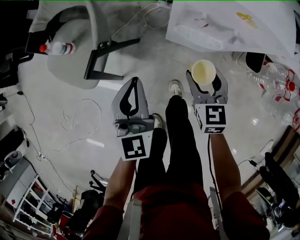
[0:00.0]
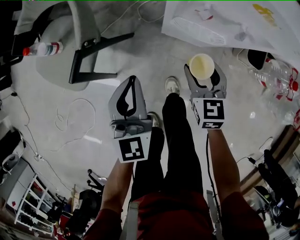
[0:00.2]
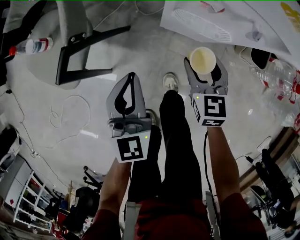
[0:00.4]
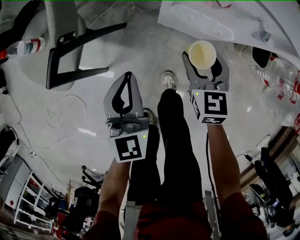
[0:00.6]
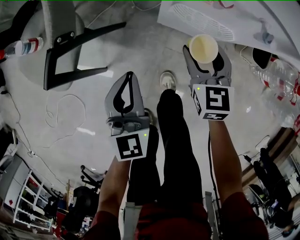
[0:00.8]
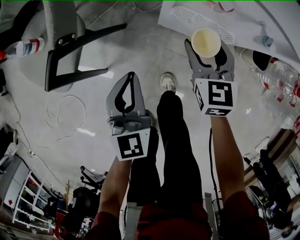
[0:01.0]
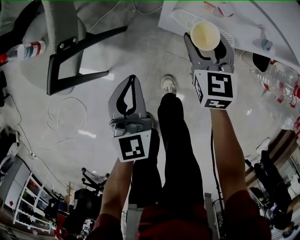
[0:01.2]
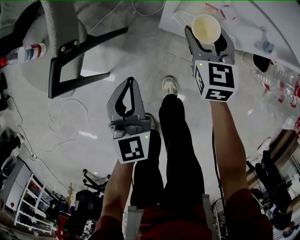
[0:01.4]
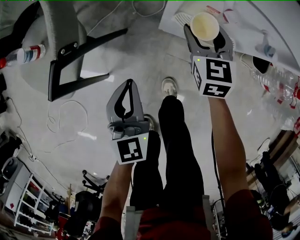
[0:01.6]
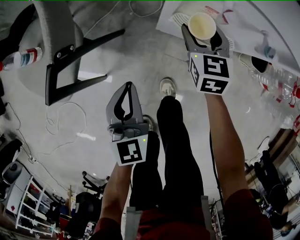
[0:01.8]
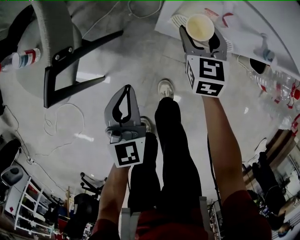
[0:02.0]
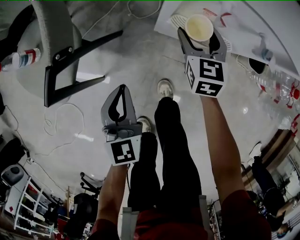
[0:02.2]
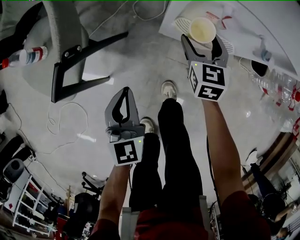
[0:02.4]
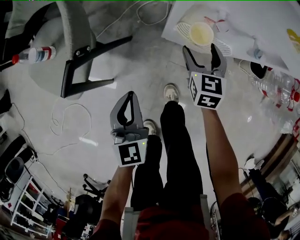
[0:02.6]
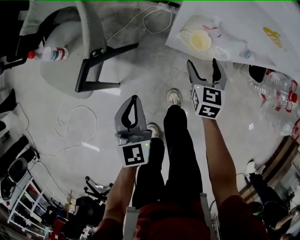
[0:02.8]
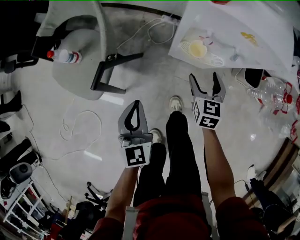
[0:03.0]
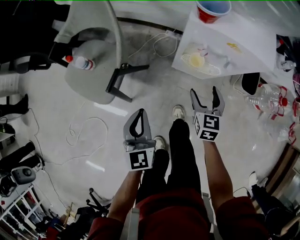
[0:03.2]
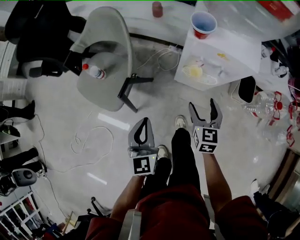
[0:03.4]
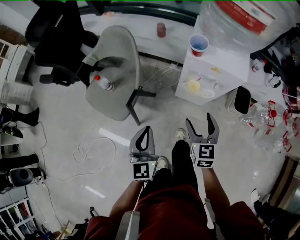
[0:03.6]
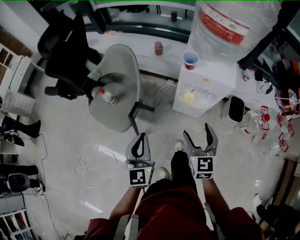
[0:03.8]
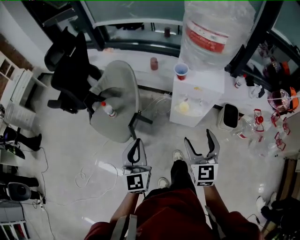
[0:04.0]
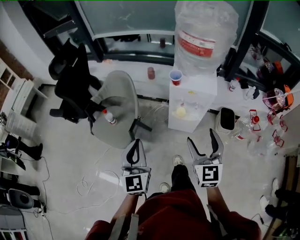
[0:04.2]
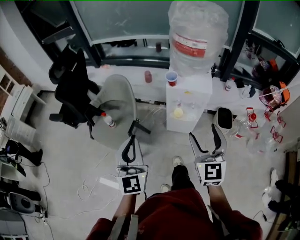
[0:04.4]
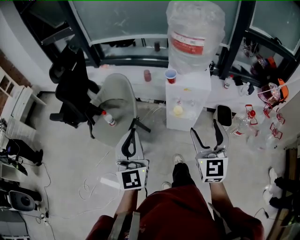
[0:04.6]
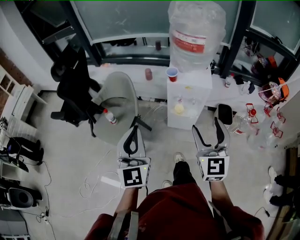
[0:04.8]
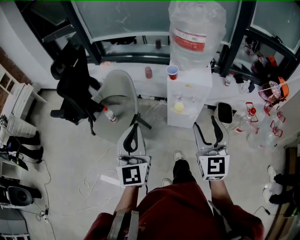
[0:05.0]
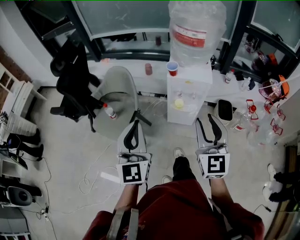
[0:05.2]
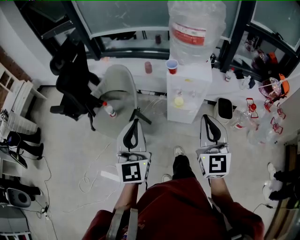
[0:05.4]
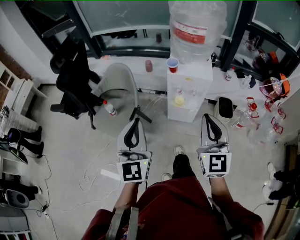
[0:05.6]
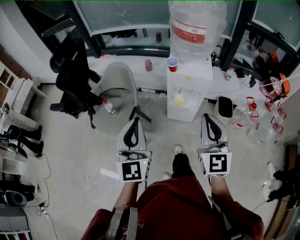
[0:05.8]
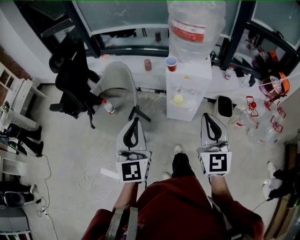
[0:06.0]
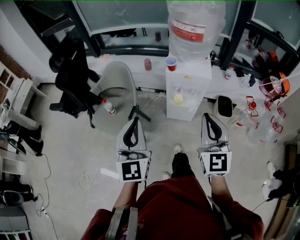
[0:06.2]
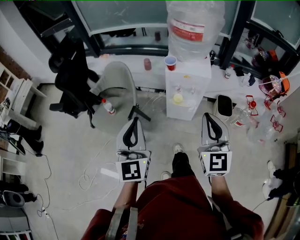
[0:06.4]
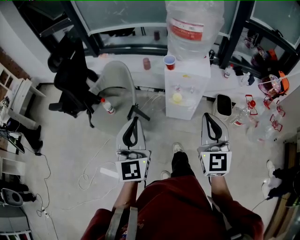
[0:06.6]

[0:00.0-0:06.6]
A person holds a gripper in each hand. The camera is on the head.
0:00.0 to 0:01.6: The right gripper moves forward and downward, about 20 cm; the left gripper heads downward, covering roughly 15 cm.
0:01.6 to 0:03.2: The left gripper moves upward, roughly 15 cm. The right gripper shifts approximately 20 cm backward and upward.
0:03.2 to 0:05.0: The left gripper is displaced upward by about 40 cm, and rotates approximately 30 degrees. Meanwhile the right gripper moves upward and backward, some 50 cm, and tilts its fingers roughly 30 degrees upward.
0:05.0 to 0:06.6: The right gripper closes its fingers.

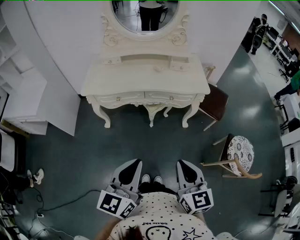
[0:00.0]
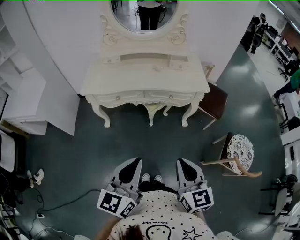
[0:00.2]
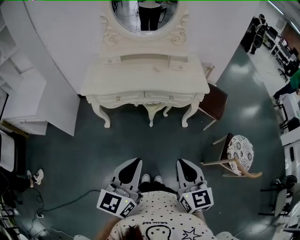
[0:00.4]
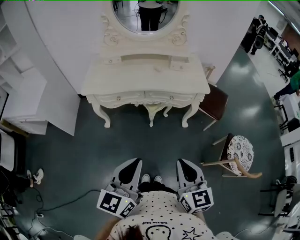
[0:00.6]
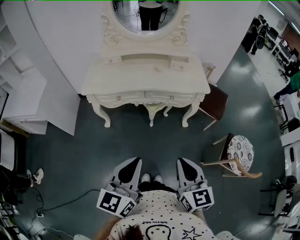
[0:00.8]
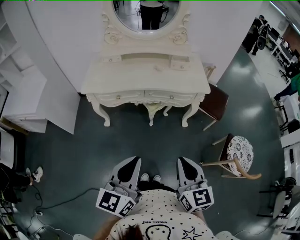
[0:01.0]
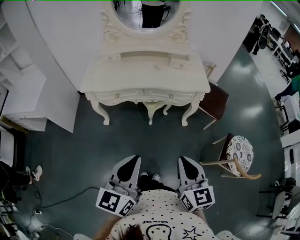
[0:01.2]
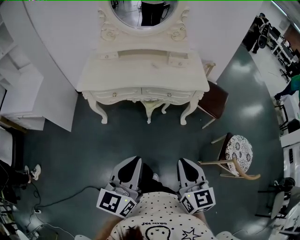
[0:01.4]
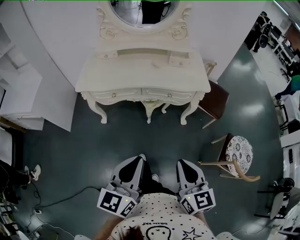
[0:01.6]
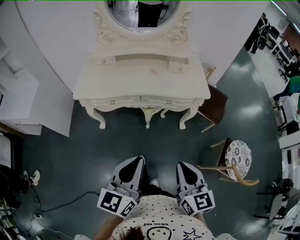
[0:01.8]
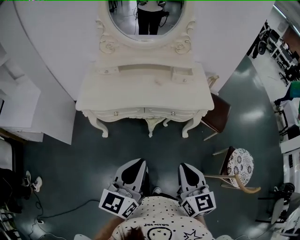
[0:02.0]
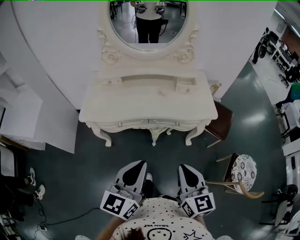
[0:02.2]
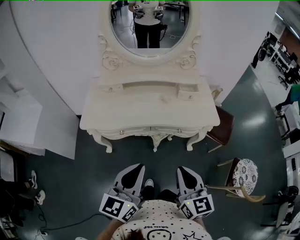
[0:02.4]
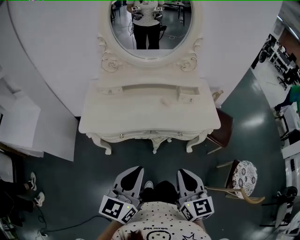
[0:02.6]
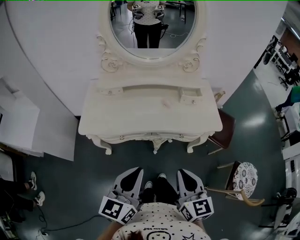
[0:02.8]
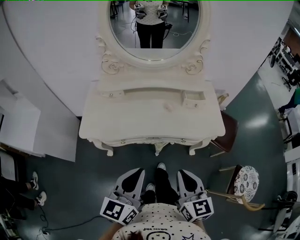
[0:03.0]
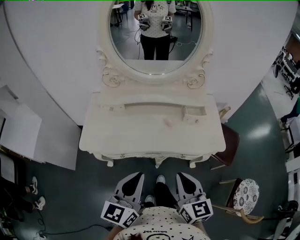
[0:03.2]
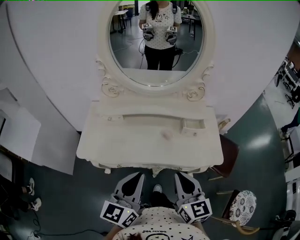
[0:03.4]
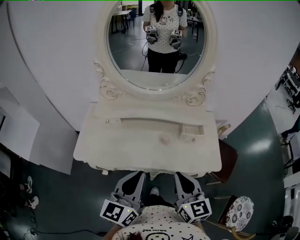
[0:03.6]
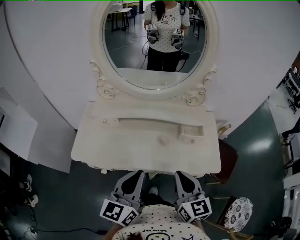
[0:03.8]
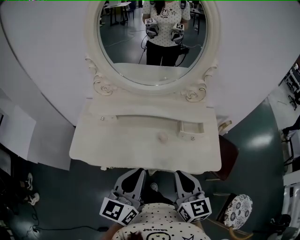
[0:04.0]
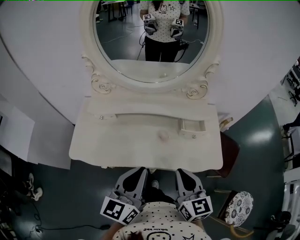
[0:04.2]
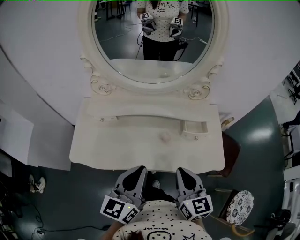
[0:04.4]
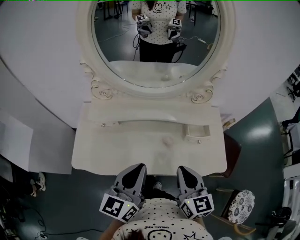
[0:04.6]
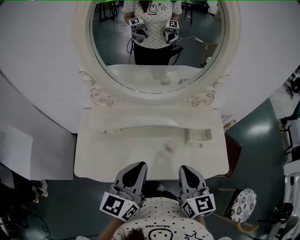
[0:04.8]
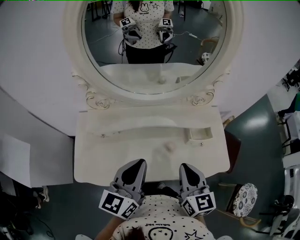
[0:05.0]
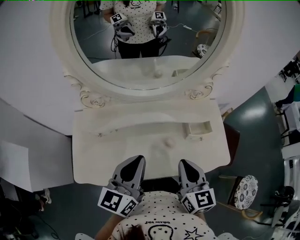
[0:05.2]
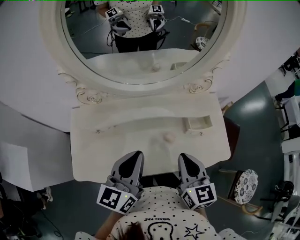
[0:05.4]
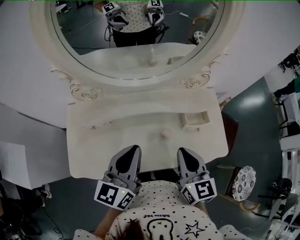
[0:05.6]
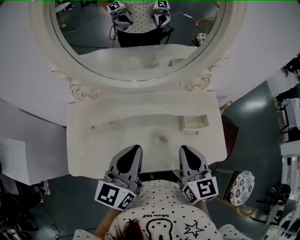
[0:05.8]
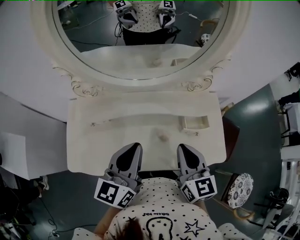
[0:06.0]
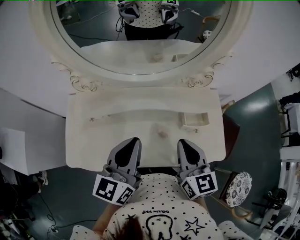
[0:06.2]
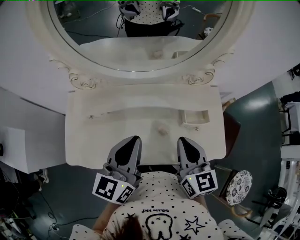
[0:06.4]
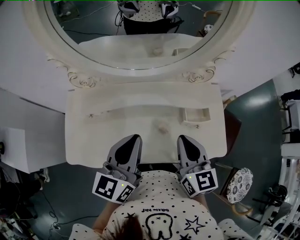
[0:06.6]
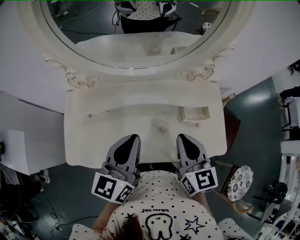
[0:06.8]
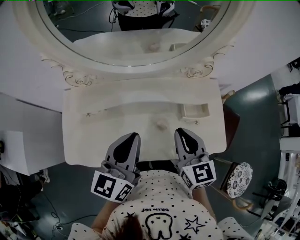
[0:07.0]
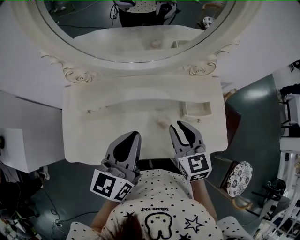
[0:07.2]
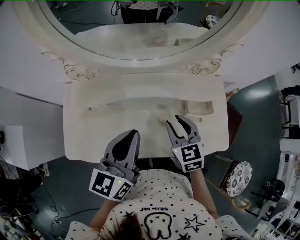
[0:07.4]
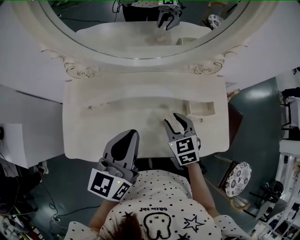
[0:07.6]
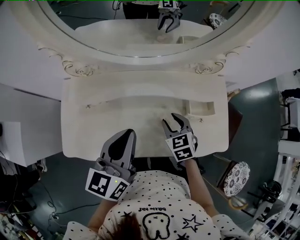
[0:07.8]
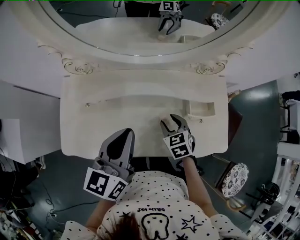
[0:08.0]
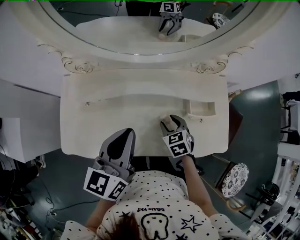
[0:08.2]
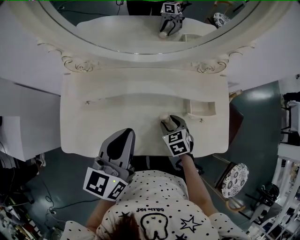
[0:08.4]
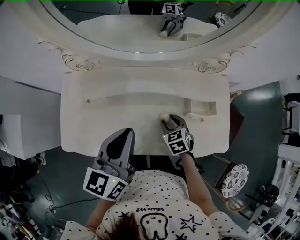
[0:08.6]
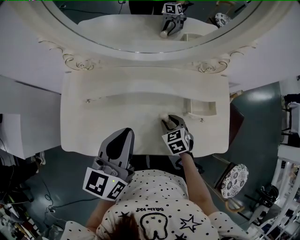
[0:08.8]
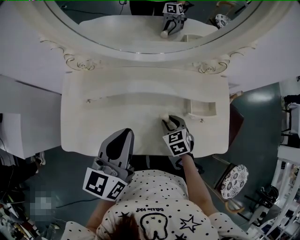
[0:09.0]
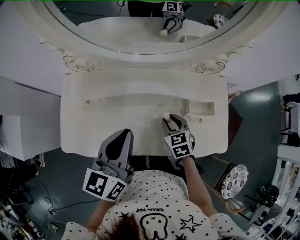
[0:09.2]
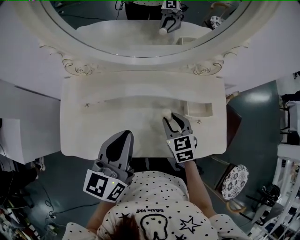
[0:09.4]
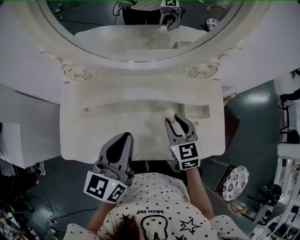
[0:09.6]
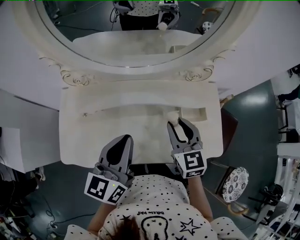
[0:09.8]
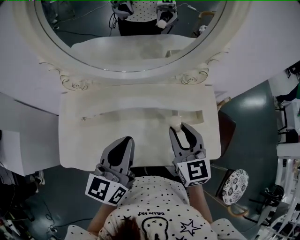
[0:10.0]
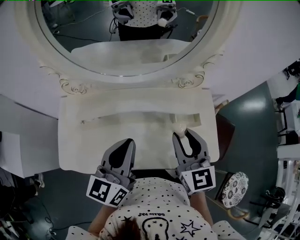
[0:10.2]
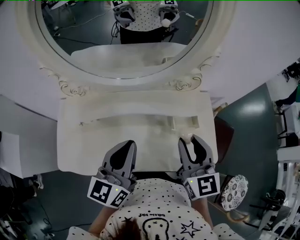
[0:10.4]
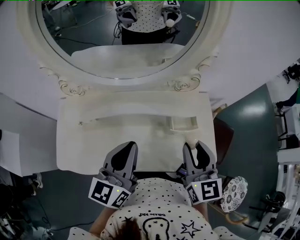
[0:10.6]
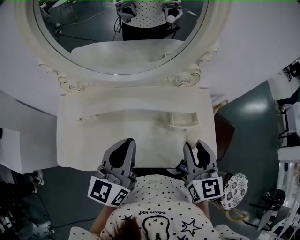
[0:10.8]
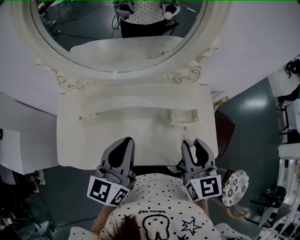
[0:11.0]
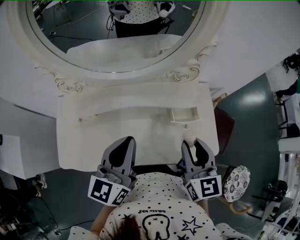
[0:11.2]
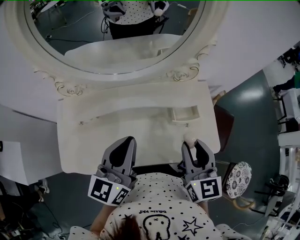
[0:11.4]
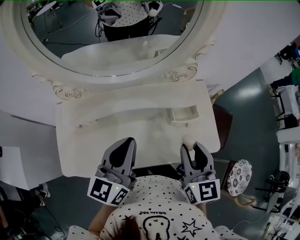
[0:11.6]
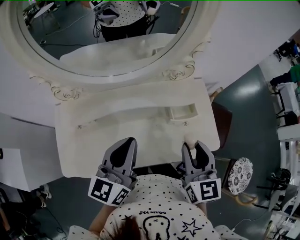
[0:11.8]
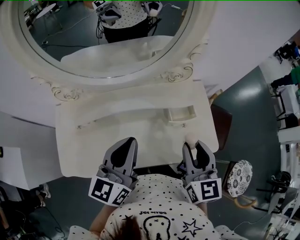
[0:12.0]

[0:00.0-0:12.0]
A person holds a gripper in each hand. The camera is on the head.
0:00.0 to 0:01.6: The grippers stay close to where they were, moving slightly.
0:01.6 to 0:03.0: The right gripper shifts about 25 cm forward and to the left, while the left gripper moves forward, approximately 25 cm.
0:03.0 to 0:04.4: The two grippers go roughly 20 cm forward.
0:04.4 to 0:06.0: The grippers both shift forward by some 15 cm.
0:06.0 to 0:07.6: The right gripper is displaced downward and forward by some 15 cm, changes its angle by roughly 30 degrees, and opens up.
0:07.6 to 0:09.0: The right gripper moves downward, about 10 cm.
0:09.0 to 0:10.4: The right gripper heads upward, covering approximately 25 cm, and points its fingers roughly 40 degrees further upward, while the left gripper is displaced to the right by roughly 5 cm.
0:10.4 to 0:12.0: The right gripper shifts by approximately 5 cm.

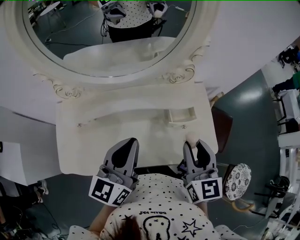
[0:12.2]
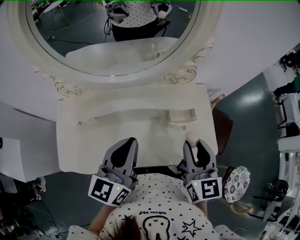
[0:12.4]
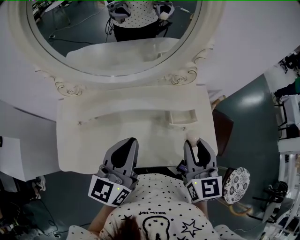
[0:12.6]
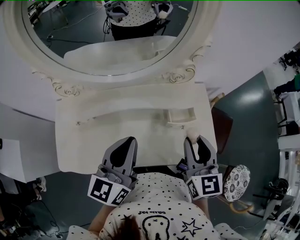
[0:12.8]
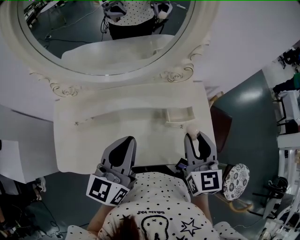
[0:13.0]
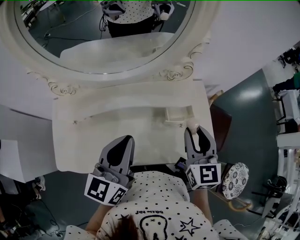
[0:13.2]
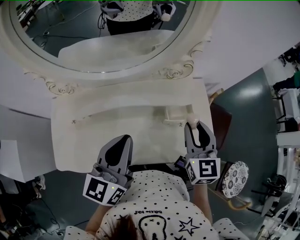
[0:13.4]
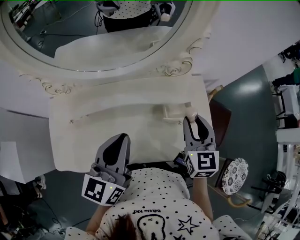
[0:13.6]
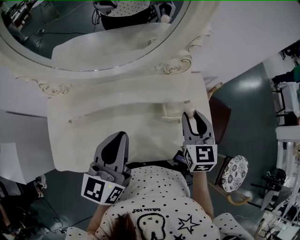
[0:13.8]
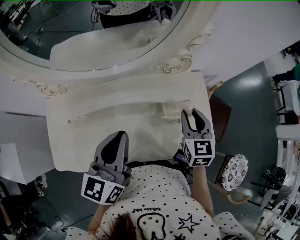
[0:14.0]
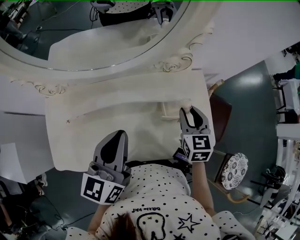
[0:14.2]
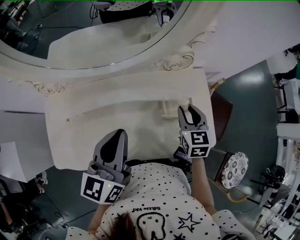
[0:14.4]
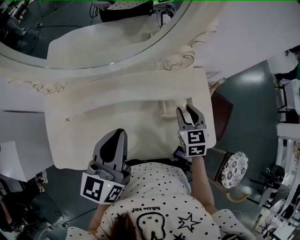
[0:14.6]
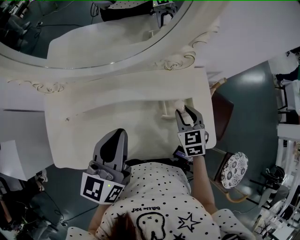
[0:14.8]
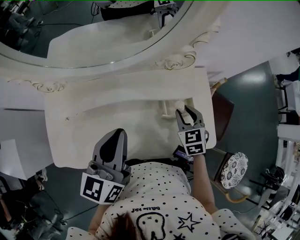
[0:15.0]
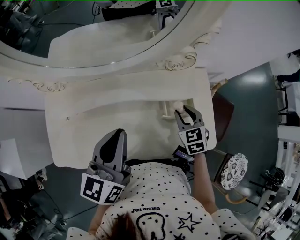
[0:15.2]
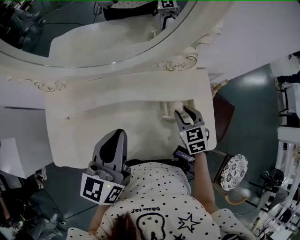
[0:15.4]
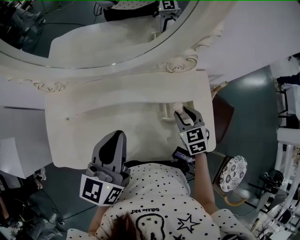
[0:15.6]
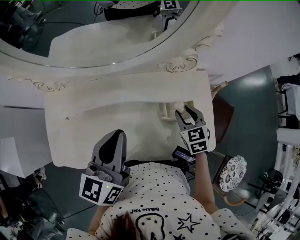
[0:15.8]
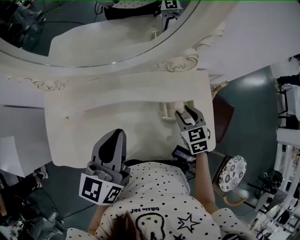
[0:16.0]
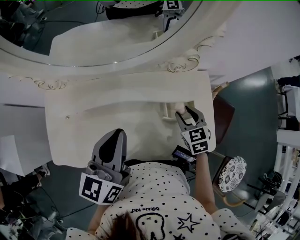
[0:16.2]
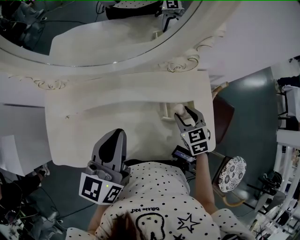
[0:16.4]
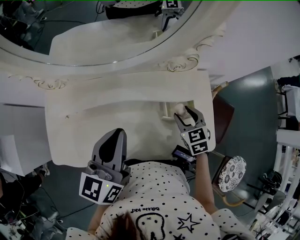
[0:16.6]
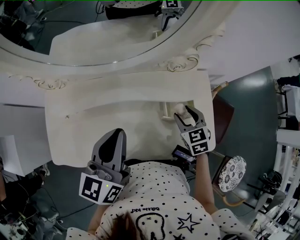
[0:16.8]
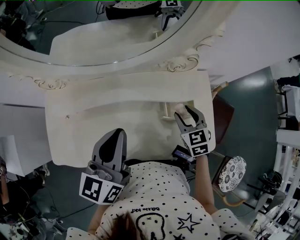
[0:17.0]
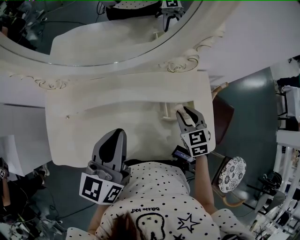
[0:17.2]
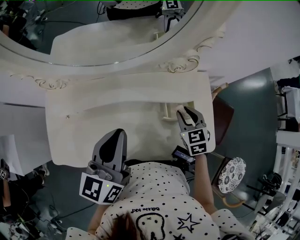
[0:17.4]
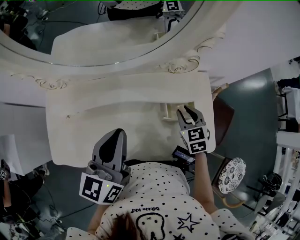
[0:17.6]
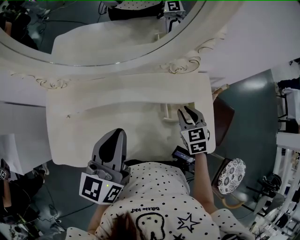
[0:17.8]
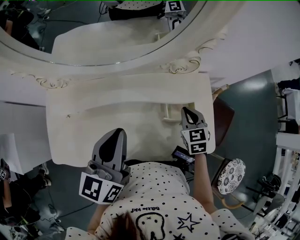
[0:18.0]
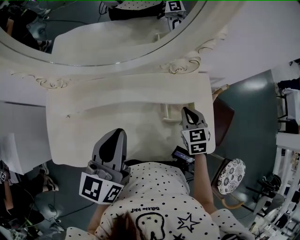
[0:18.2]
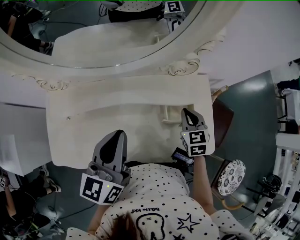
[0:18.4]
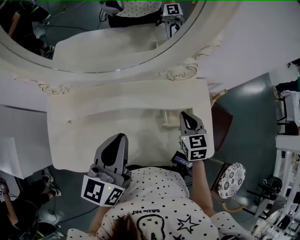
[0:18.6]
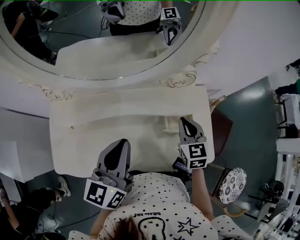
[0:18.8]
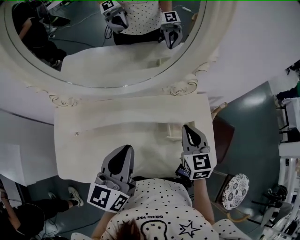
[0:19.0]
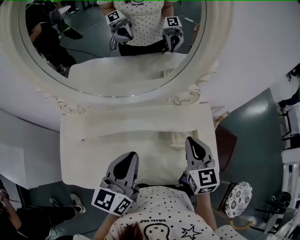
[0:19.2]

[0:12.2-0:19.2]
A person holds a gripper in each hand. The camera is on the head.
0:12.2 to 0:13.6: The right gripper goes about 10 cm forward.
0:13.6 to 0:15.0: The right gripper travels downward by roughly 15 cm, and rotates about 20 degrees.
0:15.0 to 0:17.8: There are only small adjustments of the grippers.
0:17.8 to 0:19.2: The right gripper goes approximately 15 cm upward, rotates about 20 degrees, and closes up.
